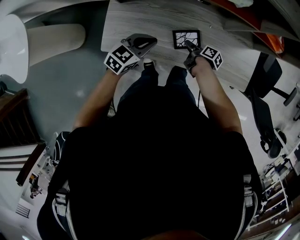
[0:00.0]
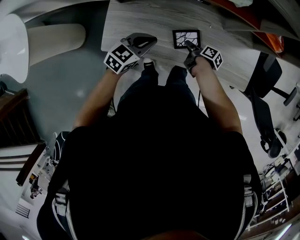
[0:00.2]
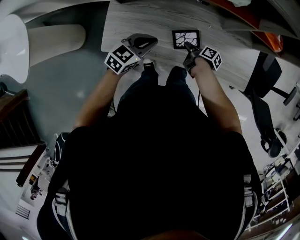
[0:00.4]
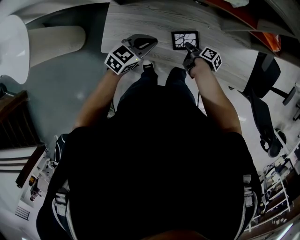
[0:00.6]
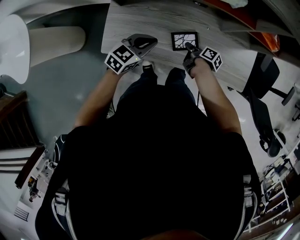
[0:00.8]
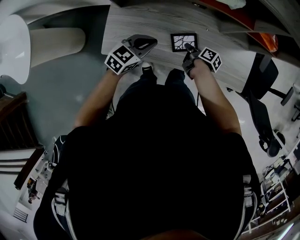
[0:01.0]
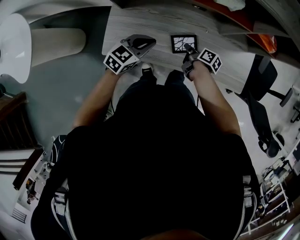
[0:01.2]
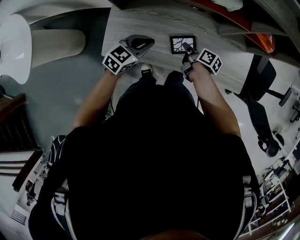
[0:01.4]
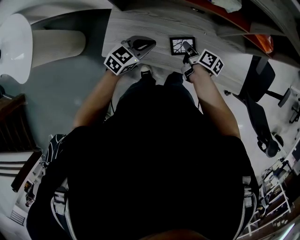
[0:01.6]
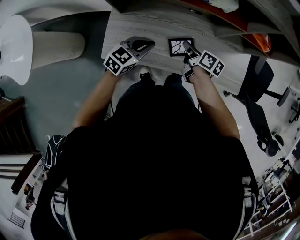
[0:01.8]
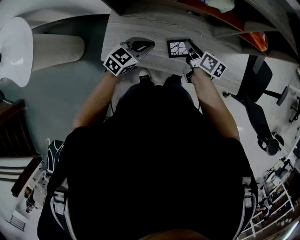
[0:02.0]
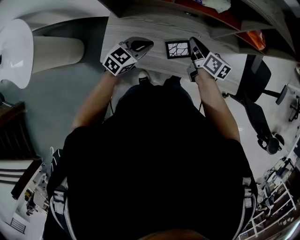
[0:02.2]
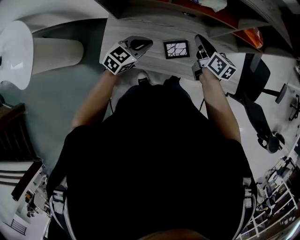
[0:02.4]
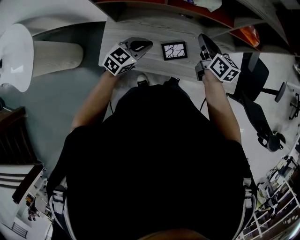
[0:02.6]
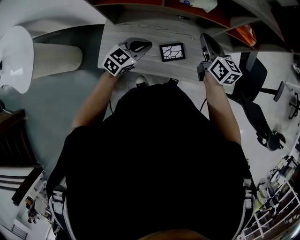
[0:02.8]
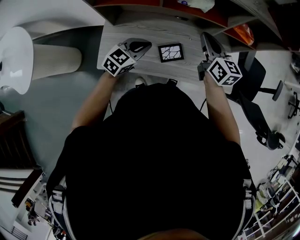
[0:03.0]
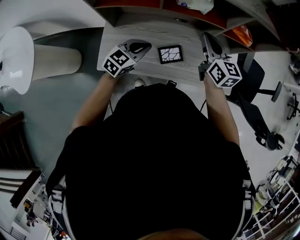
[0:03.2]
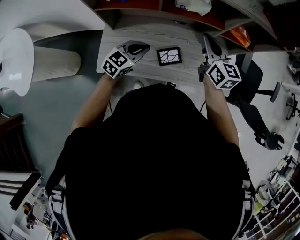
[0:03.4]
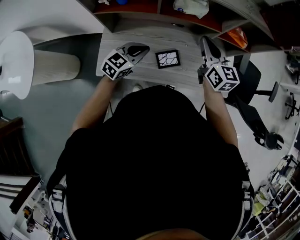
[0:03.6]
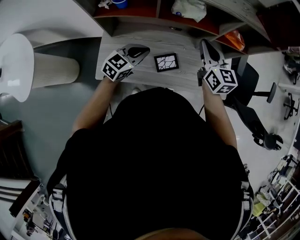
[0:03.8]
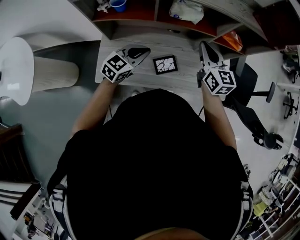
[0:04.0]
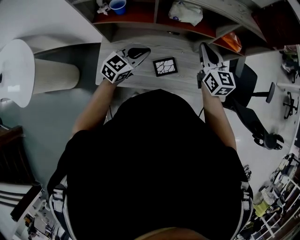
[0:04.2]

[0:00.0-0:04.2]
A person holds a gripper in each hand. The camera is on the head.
0:00.0 to 0:01.4: The right gripper is displaced upward by some 10 cm, and closes.
0:01.4 to 0:02.8: The left gripper changes place by roughly 5 cm. Meanwhile the right gripper heads upward, covering approximately 25 cm, and twists about 50 degrees counterclockwise, seen from behind.
0:02.8 to 0:04.2: Both grippers travel together upward, roughly 5 cm.

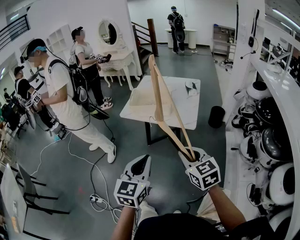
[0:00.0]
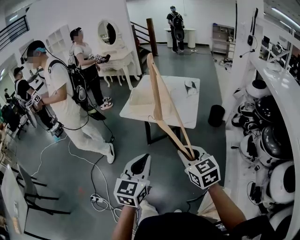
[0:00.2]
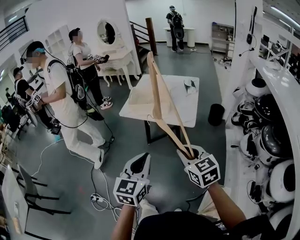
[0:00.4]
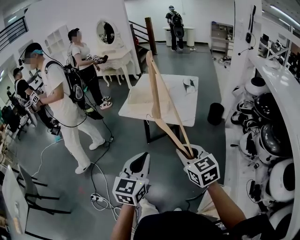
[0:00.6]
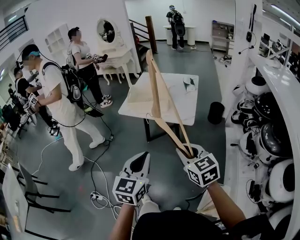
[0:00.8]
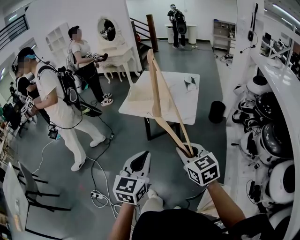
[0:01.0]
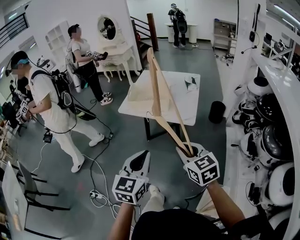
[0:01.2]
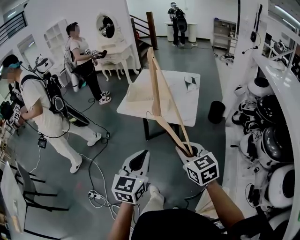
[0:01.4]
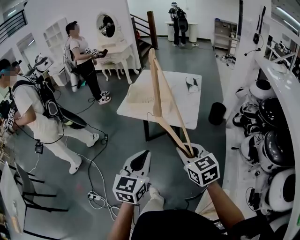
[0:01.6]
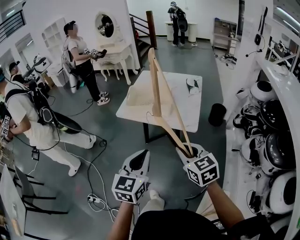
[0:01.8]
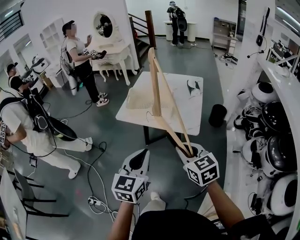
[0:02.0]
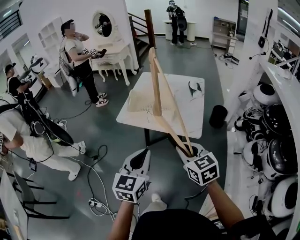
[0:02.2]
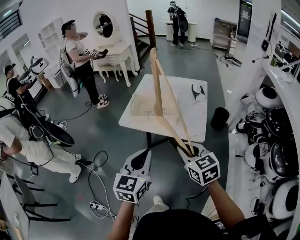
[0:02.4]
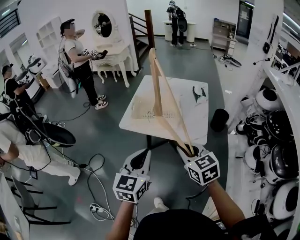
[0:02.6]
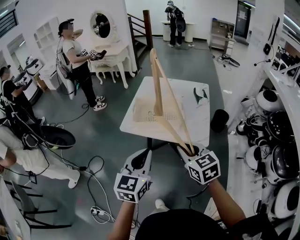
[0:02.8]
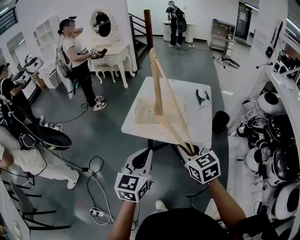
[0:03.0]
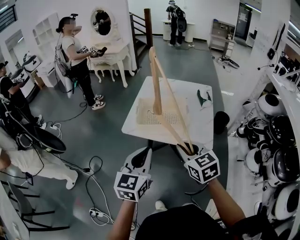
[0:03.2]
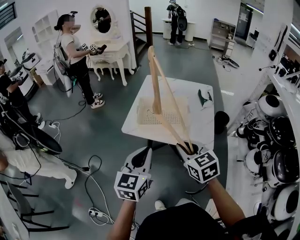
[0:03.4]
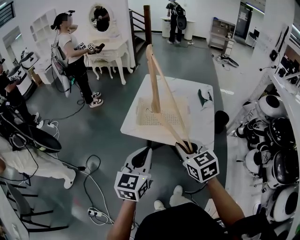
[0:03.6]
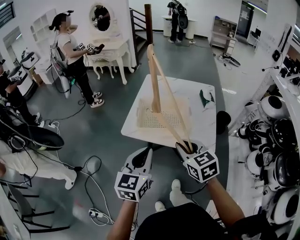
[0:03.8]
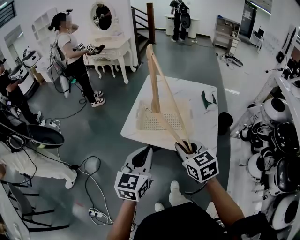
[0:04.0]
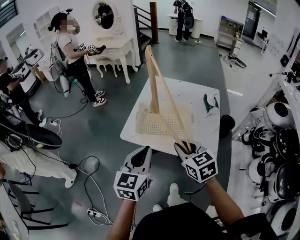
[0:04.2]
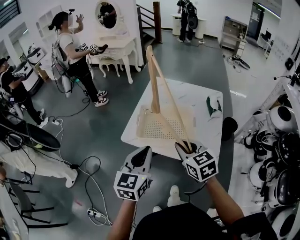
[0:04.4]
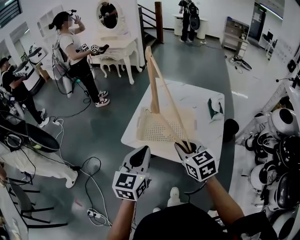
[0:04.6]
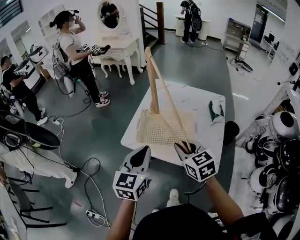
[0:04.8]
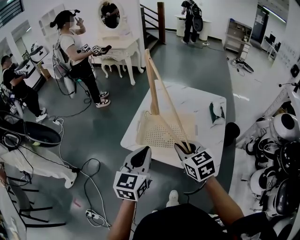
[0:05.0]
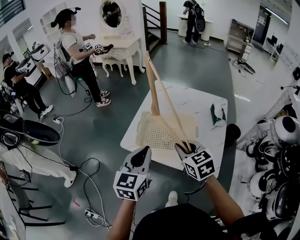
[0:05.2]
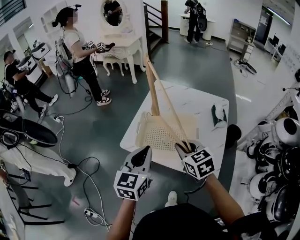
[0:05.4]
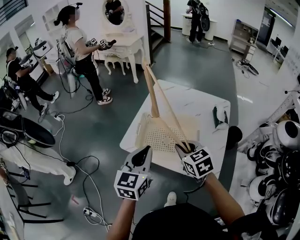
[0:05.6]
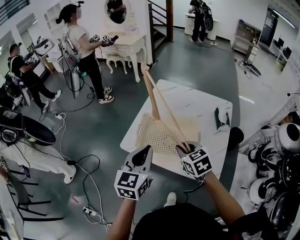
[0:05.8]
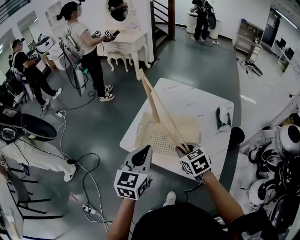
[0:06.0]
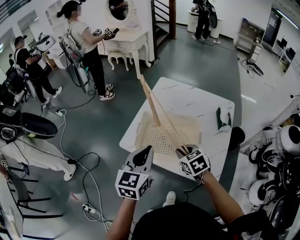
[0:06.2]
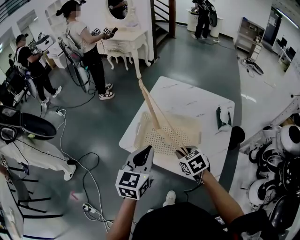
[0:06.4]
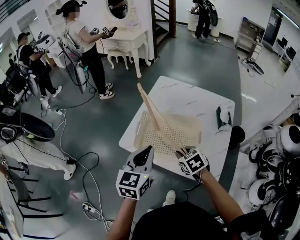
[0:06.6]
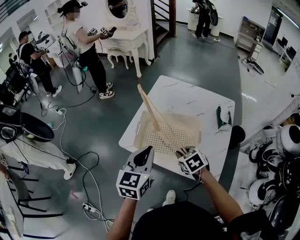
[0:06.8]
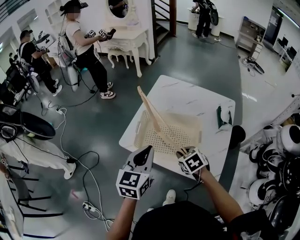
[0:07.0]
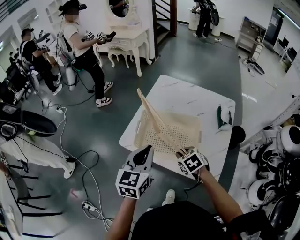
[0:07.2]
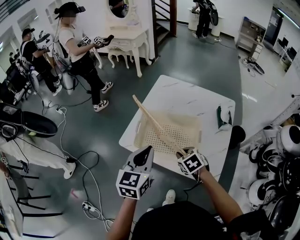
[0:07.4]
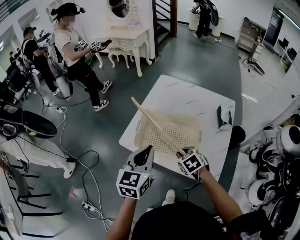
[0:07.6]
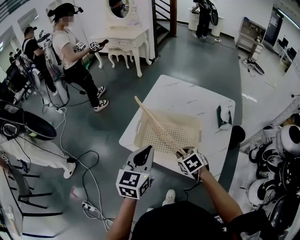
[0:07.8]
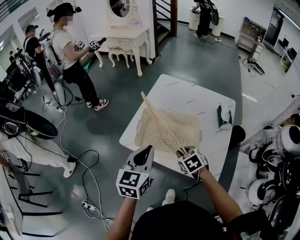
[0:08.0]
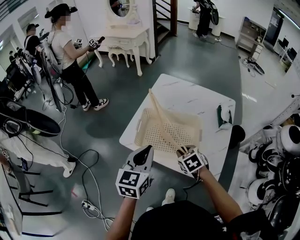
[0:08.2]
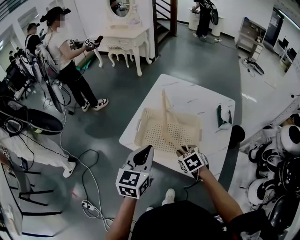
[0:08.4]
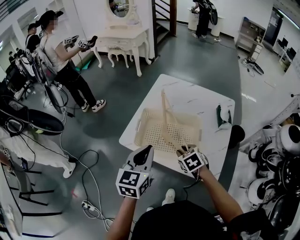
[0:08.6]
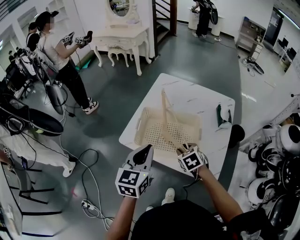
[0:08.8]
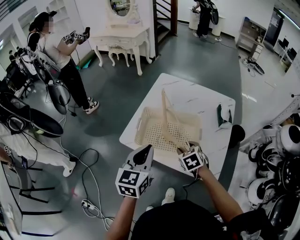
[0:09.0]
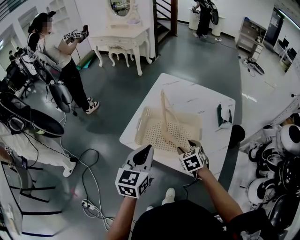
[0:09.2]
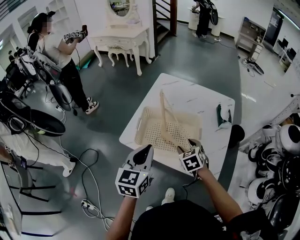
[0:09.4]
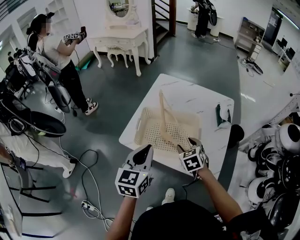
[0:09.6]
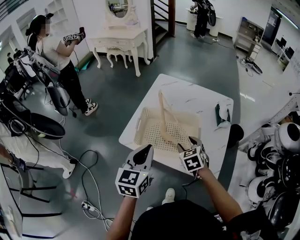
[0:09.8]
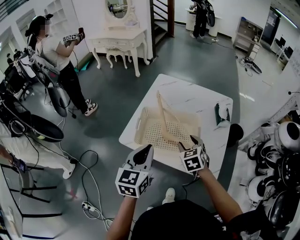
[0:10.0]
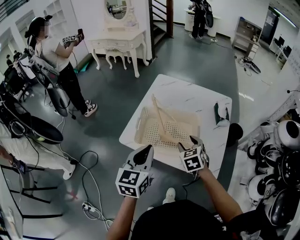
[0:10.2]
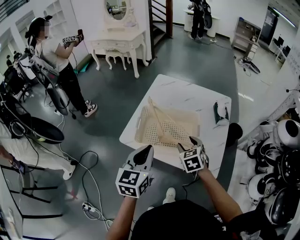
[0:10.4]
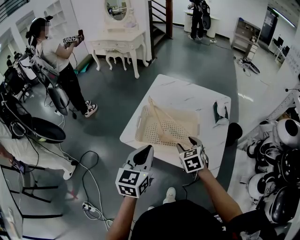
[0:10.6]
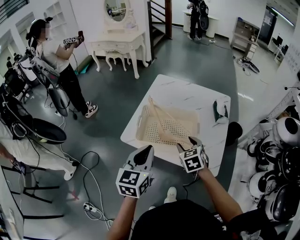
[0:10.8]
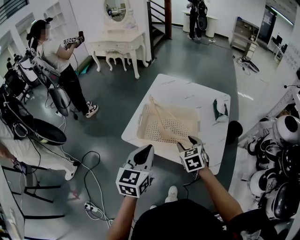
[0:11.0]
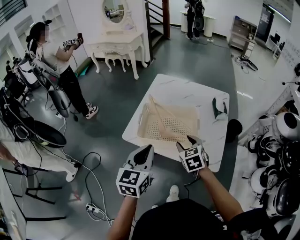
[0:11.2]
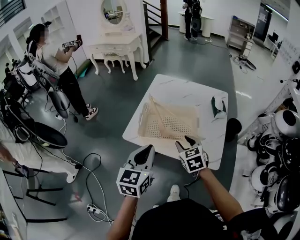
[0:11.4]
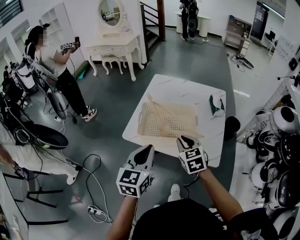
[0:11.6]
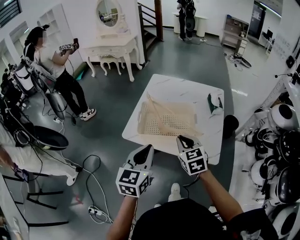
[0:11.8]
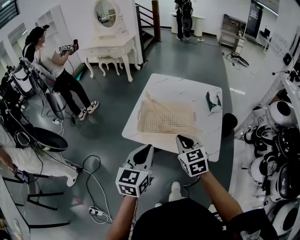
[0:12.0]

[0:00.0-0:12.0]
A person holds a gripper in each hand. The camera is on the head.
0:00.0 to 0:01.6: Both grippers travel together forward, about 5 cm.
0:01.6 to 0:03.0: Both grippers move forward and to the left, roughly 25 cm.
0:03.0 to 0:04.4: The grippers both shift forward by roughly 15 cm.
0:04.4 to 0:06.0: The right gripper moves forward and downward, approximately 15 cm. The left gripper is displaced forward by about 10 cm.
0:06.0 to 0:07.6: The right gripper heads downward, covering some 10 cm.
0:07.6 to 0:09.0: The right gripper opens up.
0:09.0 to 0:10.4: The grippers make only small movements.
0:10.4 to 0:12.0: The right gripper is displaced backward and upward by approximately 15 cm, and closes up, while the left gripper heads backward, covering some 10 cm.

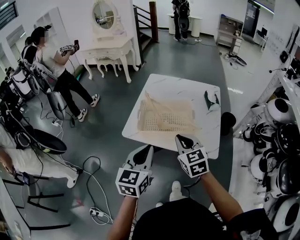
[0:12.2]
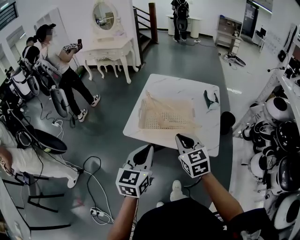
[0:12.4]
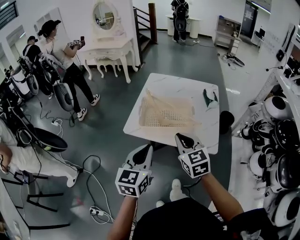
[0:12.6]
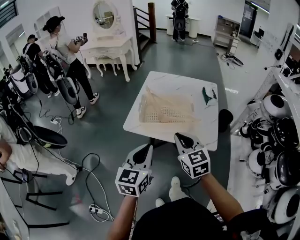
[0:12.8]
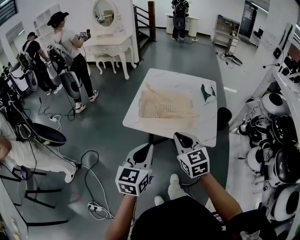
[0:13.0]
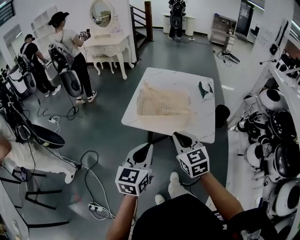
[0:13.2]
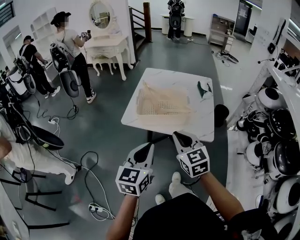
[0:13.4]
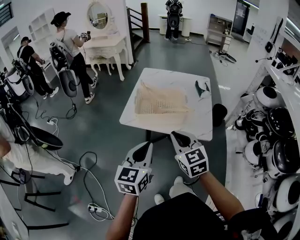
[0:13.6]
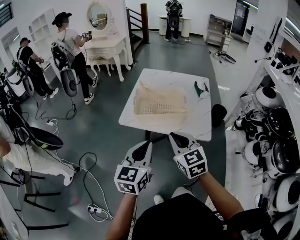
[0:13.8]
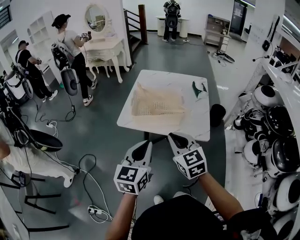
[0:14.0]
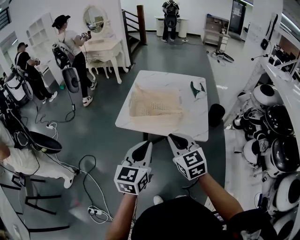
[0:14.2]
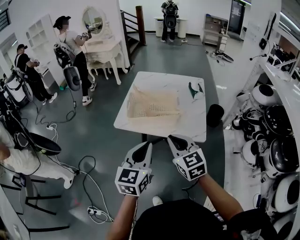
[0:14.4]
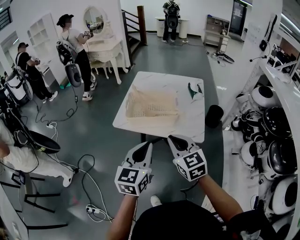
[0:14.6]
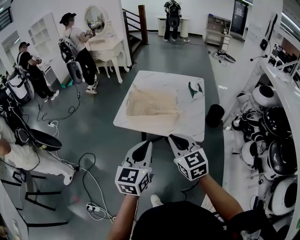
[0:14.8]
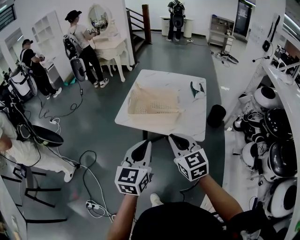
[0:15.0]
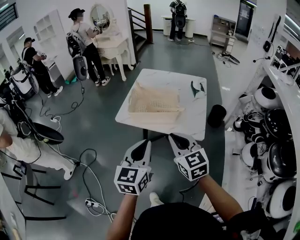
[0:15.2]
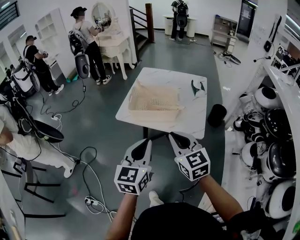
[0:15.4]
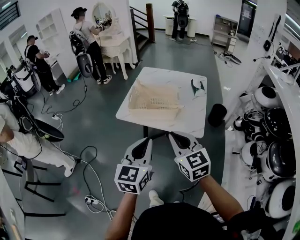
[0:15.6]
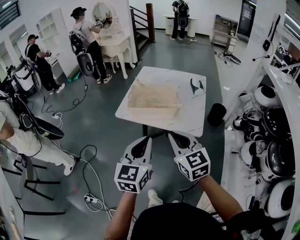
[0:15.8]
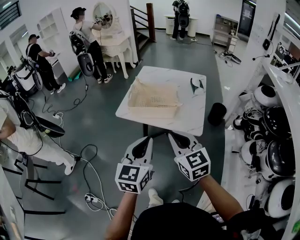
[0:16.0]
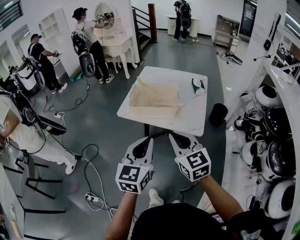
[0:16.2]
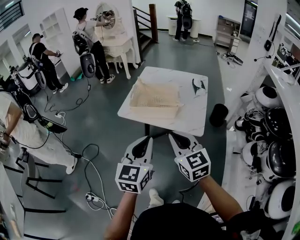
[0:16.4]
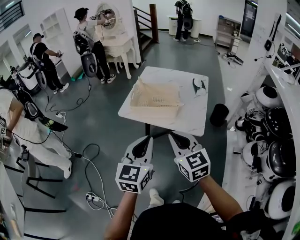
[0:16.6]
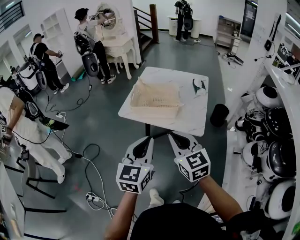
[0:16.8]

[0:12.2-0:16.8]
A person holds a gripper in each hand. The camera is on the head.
0:12.2 to 0:13.8: Both grippers move backward, approximately 10 cm.
0:13.8 to 0:15.2: Both grippers travel together to the right, about 5 cm.
0:15.2 to 0:16.8: The right gripper is displaced backward by approximately 5 cm, while the left gripper moves about 5 cm.

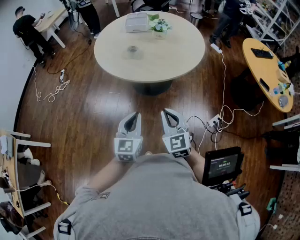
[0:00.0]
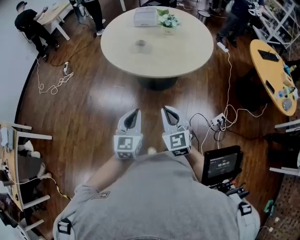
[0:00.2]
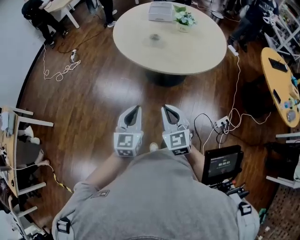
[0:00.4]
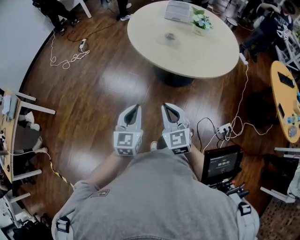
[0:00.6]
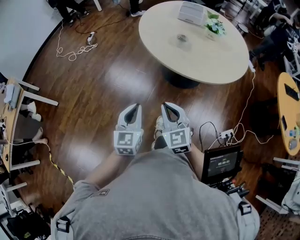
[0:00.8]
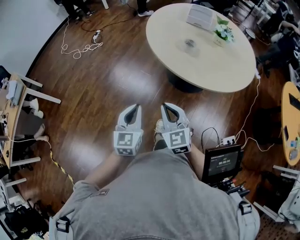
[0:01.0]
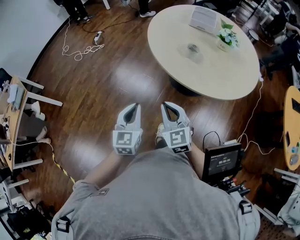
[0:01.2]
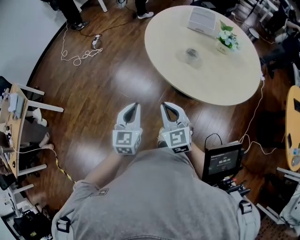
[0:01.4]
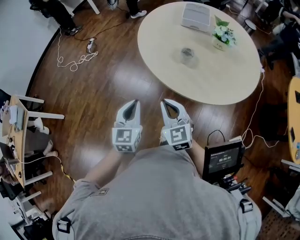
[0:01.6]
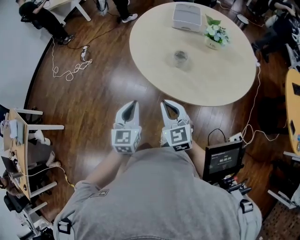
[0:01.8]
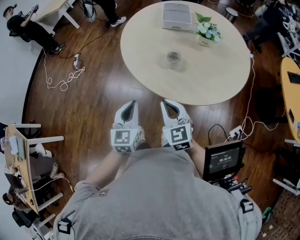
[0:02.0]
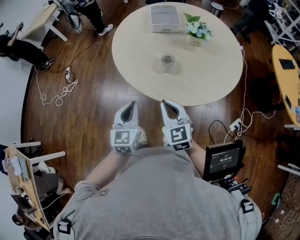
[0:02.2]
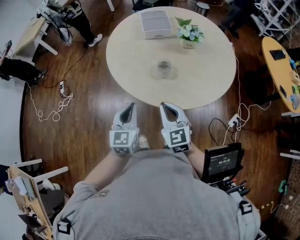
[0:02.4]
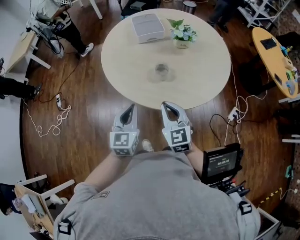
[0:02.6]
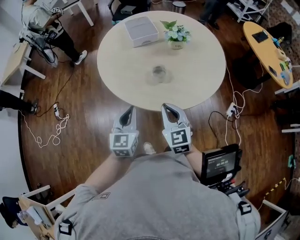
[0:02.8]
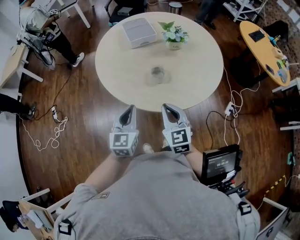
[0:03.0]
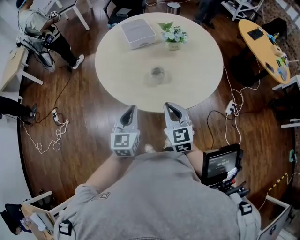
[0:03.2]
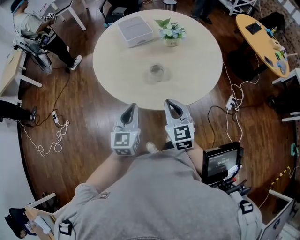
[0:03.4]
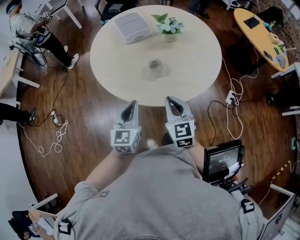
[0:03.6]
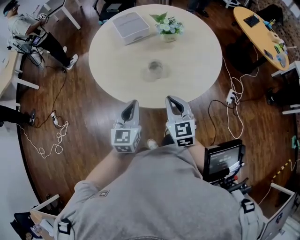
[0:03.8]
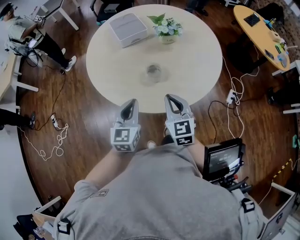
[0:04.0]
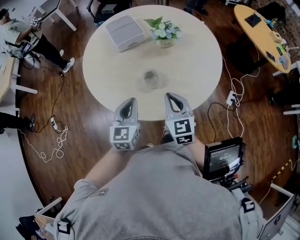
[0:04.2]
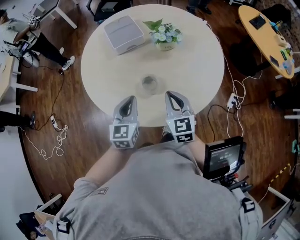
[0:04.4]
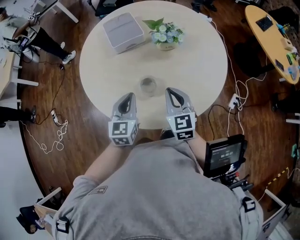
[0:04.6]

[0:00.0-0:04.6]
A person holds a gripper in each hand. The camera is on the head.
0:00.0 to 0:01.6: The grippers both shift forward and to the left by some 30 cm.
0:01.6 to 0:03.0: The right gripper ends up some 10 cm from where it was, and swivels about 40 degrees. The left gripper ends up approximately 20 cm from where it was, and changes its angle by roughly 40 degrees.
0:03.0 to 0:04.6: The left gripper is displaced forward by about 20 cm; the right gripper goes roughly 20 cm forward and to the right.
